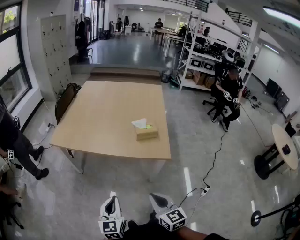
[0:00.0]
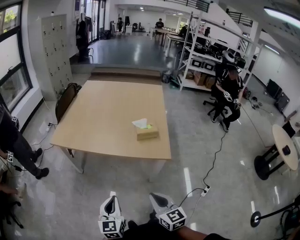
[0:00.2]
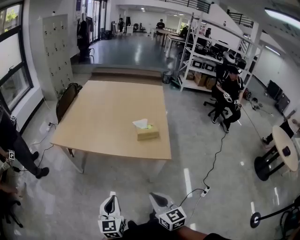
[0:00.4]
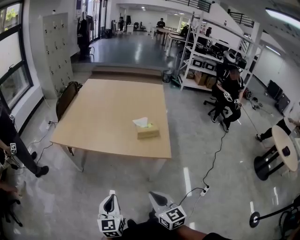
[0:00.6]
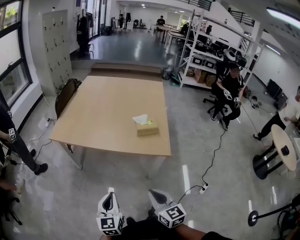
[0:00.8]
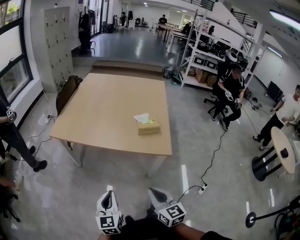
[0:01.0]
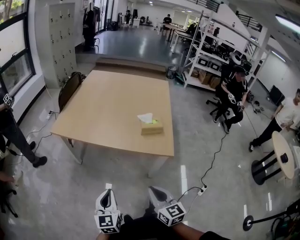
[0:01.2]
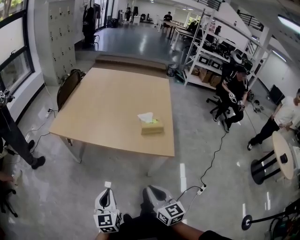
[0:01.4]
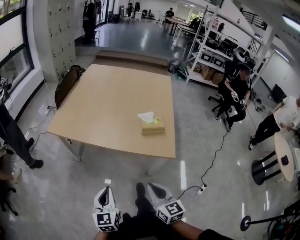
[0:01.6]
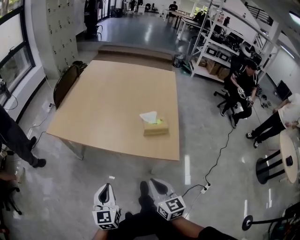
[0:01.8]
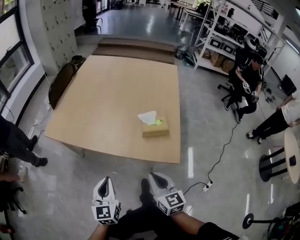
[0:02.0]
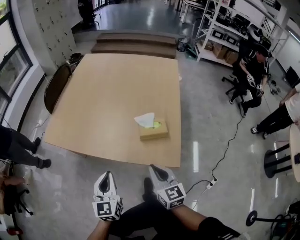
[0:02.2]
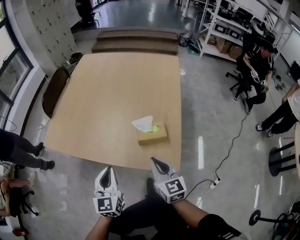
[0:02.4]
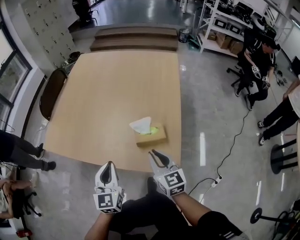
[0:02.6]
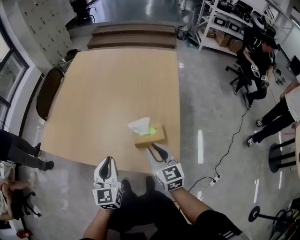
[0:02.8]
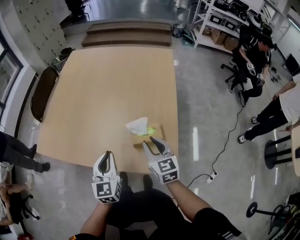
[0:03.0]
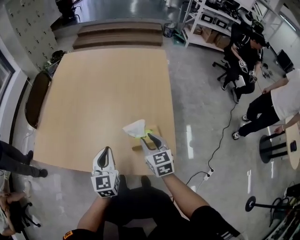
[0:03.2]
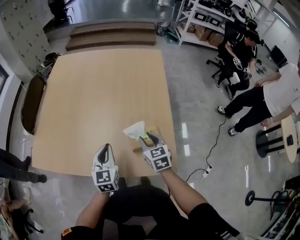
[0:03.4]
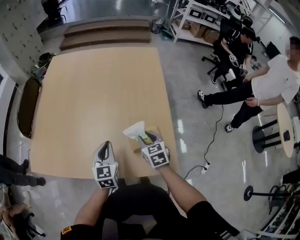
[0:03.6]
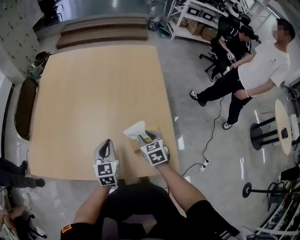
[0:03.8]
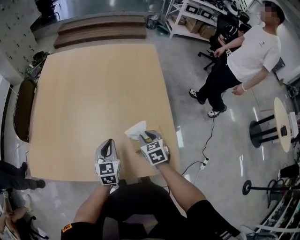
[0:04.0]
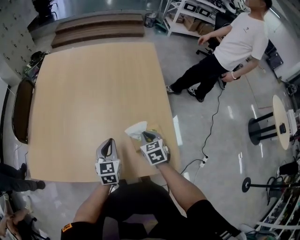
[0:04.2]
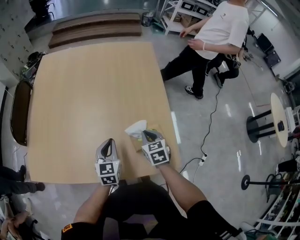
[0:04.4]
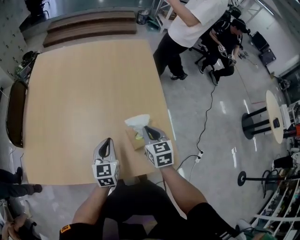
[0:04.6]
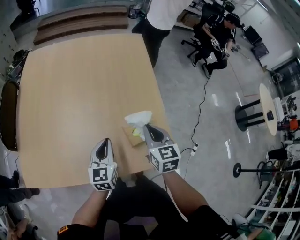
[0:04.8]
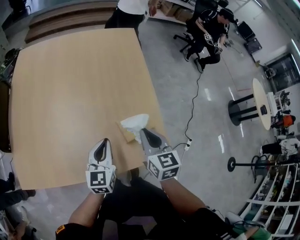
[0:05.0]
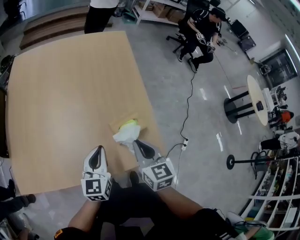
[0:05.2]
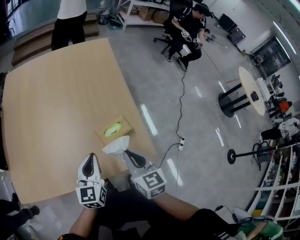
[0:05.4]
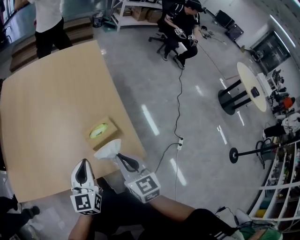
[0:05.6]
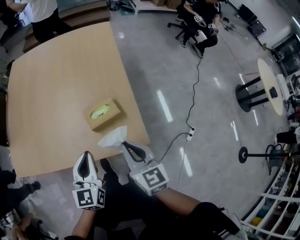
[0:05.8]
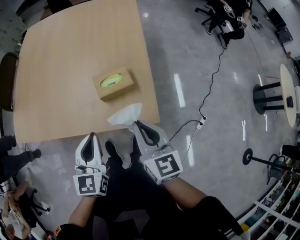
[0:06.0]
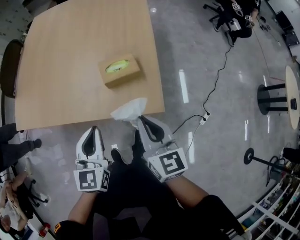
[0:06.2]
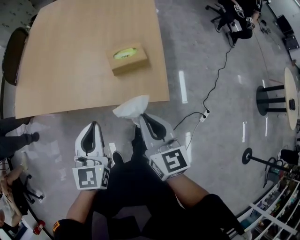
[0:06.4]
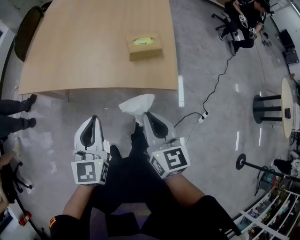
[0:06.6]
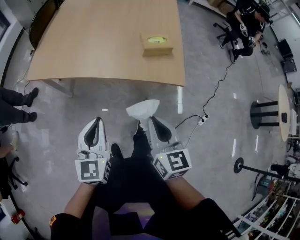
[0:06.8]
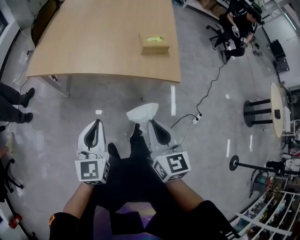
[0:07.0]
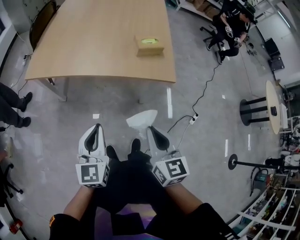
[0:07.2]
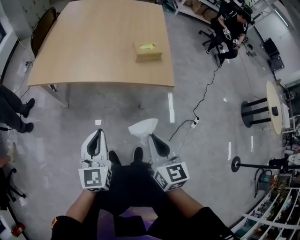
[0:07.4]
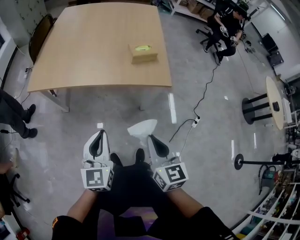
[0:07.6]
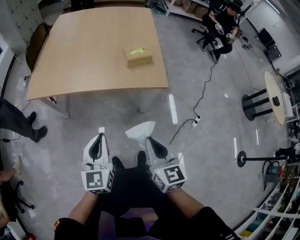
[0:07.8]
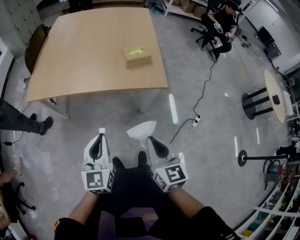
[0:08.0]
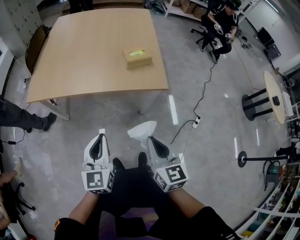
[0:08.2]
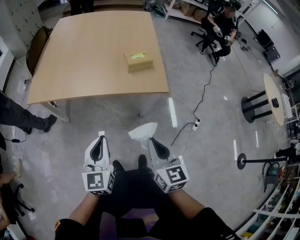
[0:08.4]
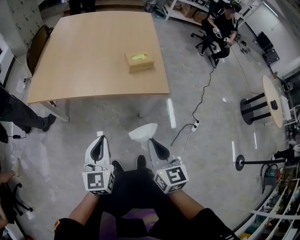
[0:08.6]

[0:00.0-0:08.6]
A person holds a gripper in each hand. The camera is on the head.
0:00.0 to 0:01.4: There are only small adjustments of the grippers.
0:01.4 to 0:02.8: Both grippers travel together forward and to the right, some 30 cm.
0:02.8 to 0:04.4: The right gripper moves downward and forward, roughly 15 cm, and changes its angle by about 30 degrees; the left gripper shifts approximately 20 cm forward and downward, and turns by approximately 20 degrees.
0:04.4 to 0:05.8: Both grippers move backward, upward and to the right, some 20 cm. The right gripper rotates some 30 degrees.
0:05.8 to 0:07.2: The right gripper travels backward by roughly 25 cm. Meanwhile the left gripper is displaced backward and to the left by approximately 30 cm.
0:07.2 to 0:08.6: The grippers move only a little.

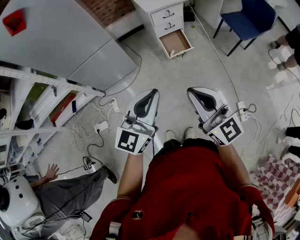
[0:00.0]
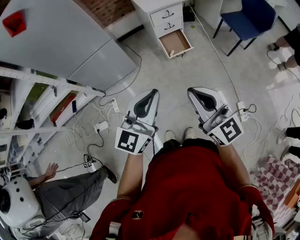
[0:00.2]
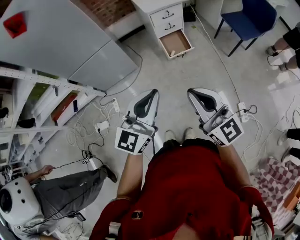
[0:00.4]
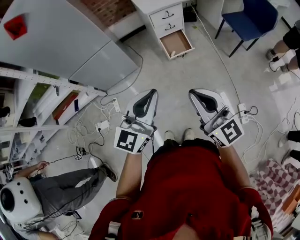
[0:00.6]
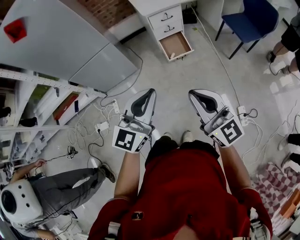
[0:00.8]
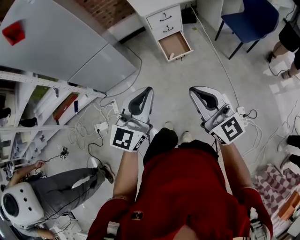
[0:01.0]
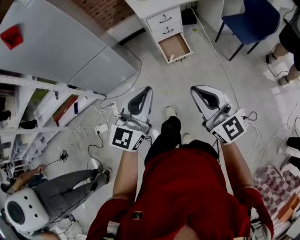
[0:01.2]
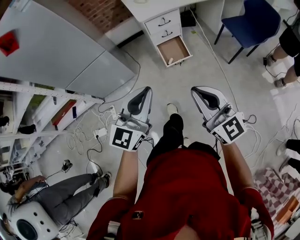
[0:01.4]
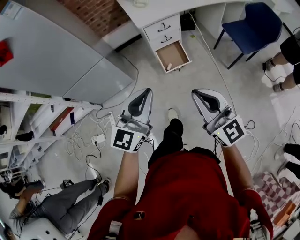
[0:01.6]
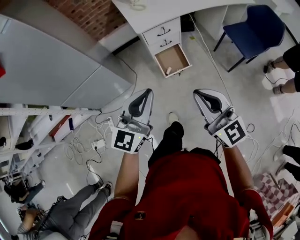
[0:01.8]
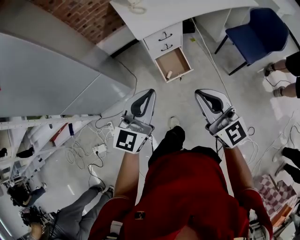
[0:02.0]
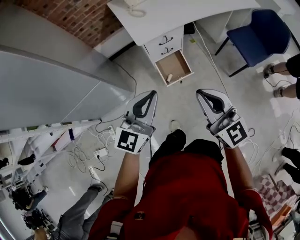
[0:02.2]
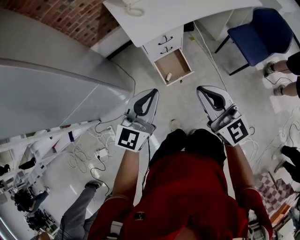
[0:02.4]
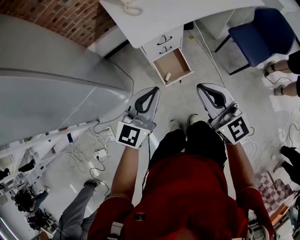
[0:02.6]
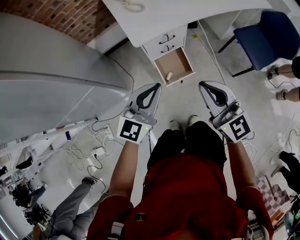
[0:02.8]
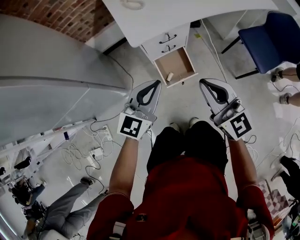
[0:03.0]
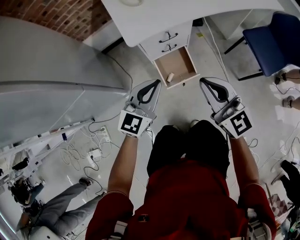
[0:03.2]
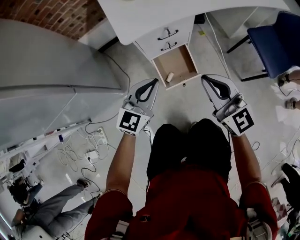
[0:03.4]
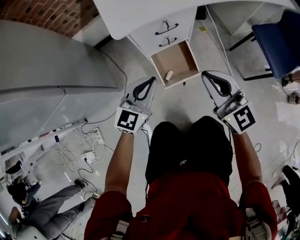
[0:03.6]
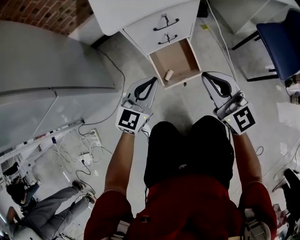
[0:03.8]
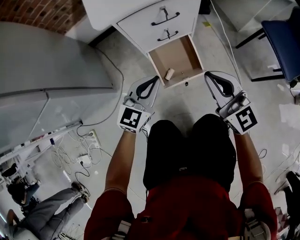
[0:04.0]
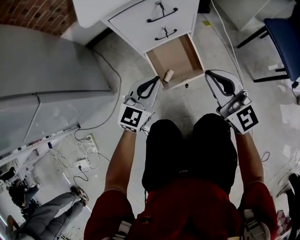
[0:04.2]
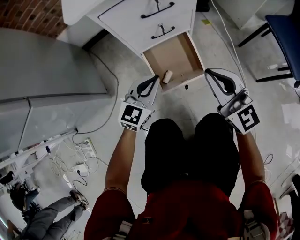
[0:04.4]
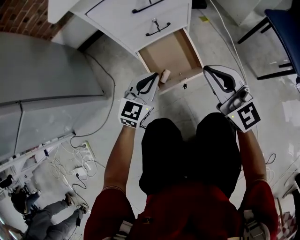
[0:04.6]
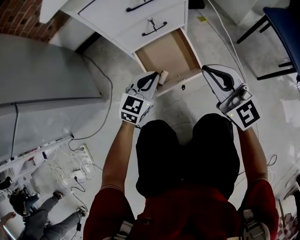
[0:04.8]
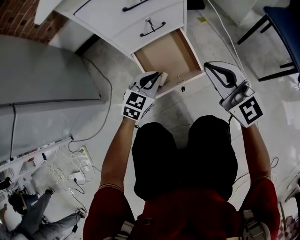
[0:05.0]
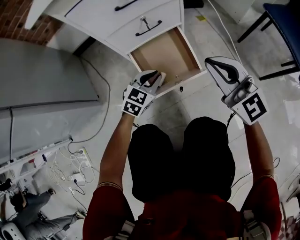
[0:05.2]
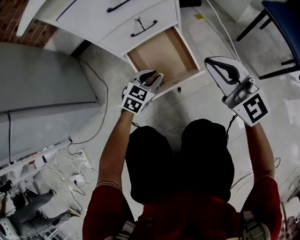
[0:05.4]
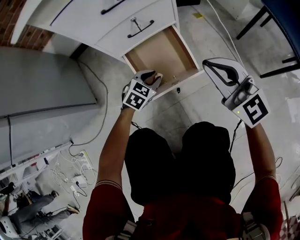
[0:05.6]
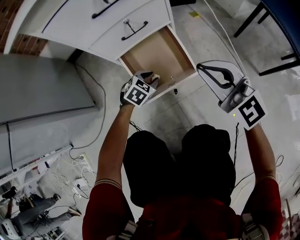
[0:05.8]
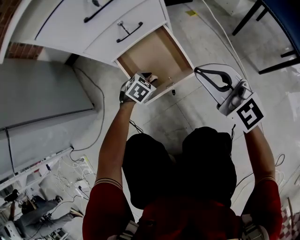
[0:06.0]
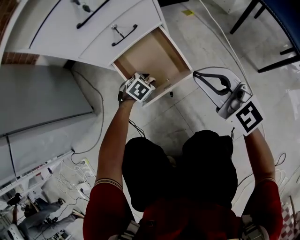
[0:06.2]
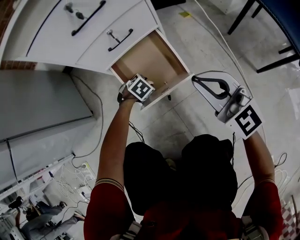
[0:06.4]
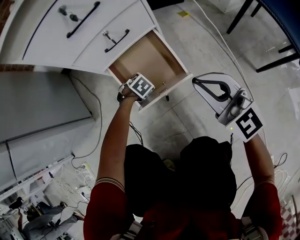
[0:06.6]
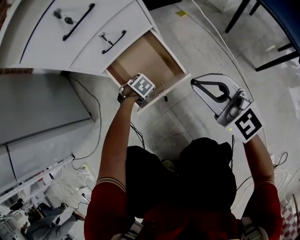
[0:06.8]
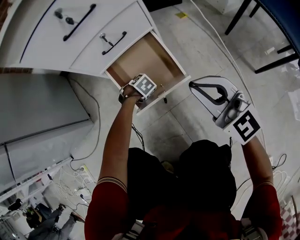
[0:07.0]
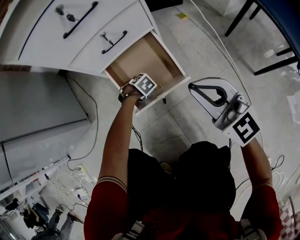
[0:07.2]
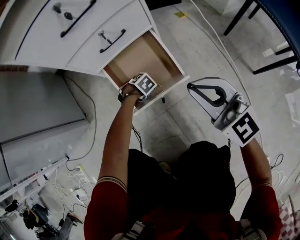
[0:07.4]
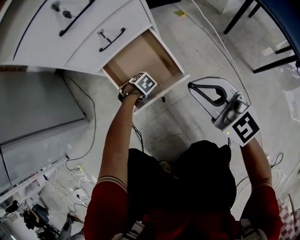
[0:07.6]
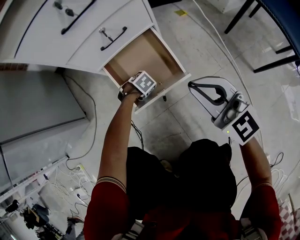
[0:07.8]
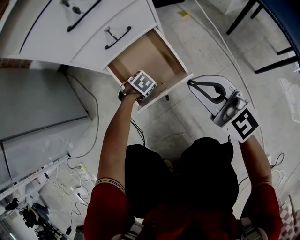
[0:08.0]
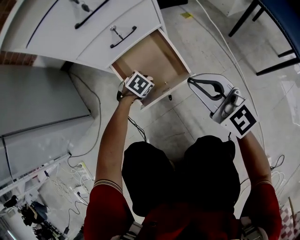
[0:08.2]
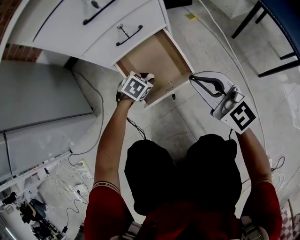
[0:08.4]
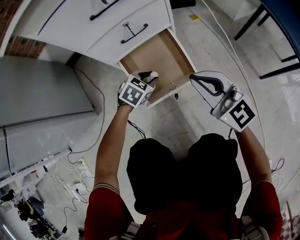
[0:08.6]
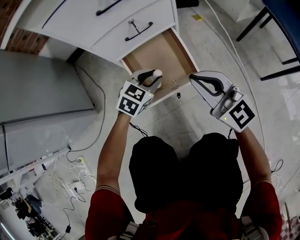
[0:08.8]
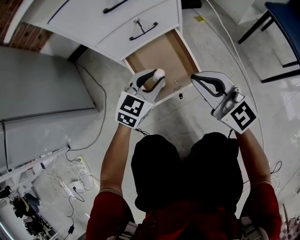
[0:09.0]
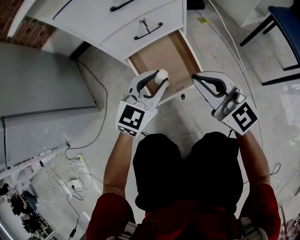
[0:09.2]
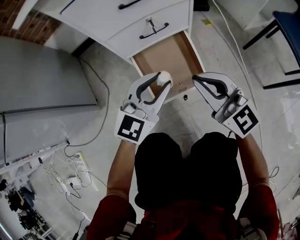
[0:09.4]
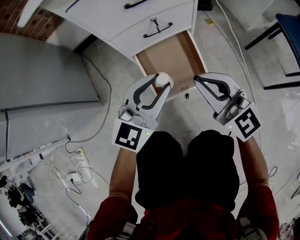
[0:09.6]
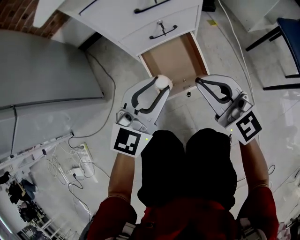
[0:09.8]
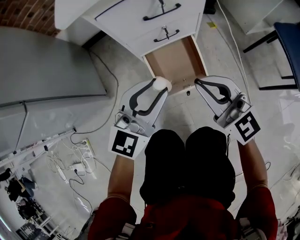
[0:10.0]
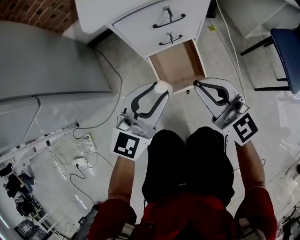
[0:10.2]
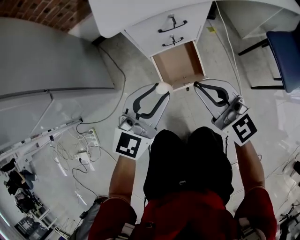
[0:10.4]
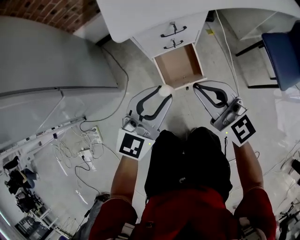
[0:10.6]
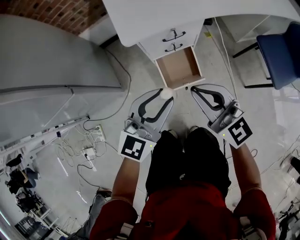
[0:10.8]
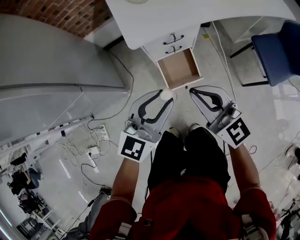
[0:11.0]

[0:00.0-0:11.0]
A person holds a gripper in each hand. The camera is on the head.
0:00.0 to 0:01.6: Both grippers move forward and to the right, about 20 cm.
0:01.6 to 0:03.2: The two grippers go some 40 cm forward and downward.
0:03.2 to 0:04.8: Both grippers move downward, some 40 cm.
0:04.8 to 0:06.2: The right gripper travels downward and to the right by about 10 cm. Meanwhile the left gripper travels downward by about 25 cm, angles its fingers downward, by about 40 degrees, and opens its fingers.
0:06.2 to 0:07.8: The left gripper shifts roughly 10 cm downward.
0:07.8 to 0:09.4: The left gripper goes approximately 35 cm upward, and points its fingers some 70 degrees further upward; the right gripper ends up some 10 cm from where it was.
0:09.4 to 0:11.0: Both grippers travel together upward, approximately 40 cm.

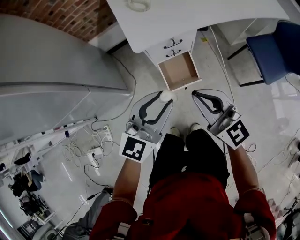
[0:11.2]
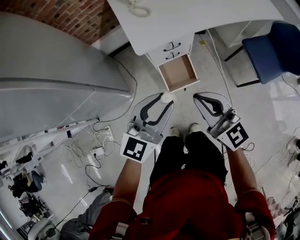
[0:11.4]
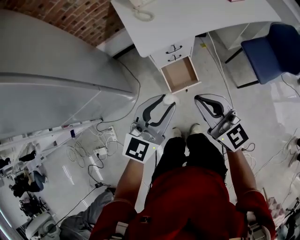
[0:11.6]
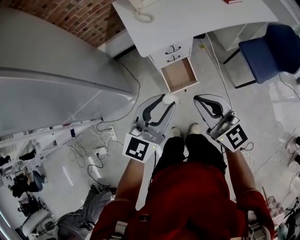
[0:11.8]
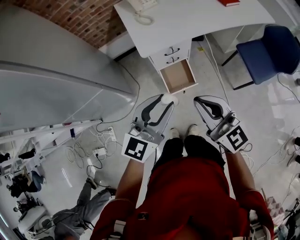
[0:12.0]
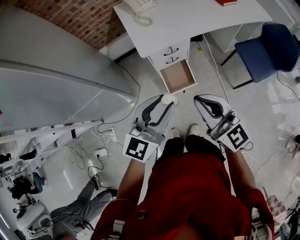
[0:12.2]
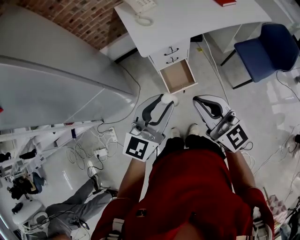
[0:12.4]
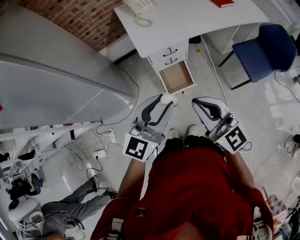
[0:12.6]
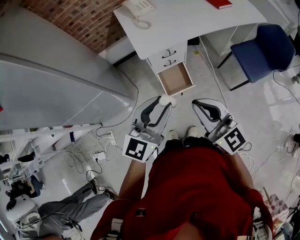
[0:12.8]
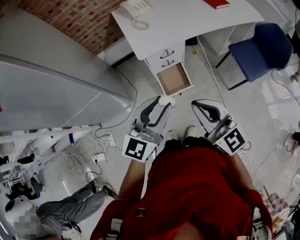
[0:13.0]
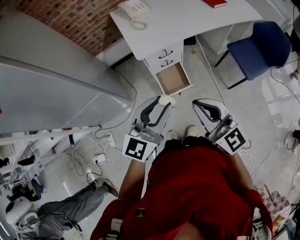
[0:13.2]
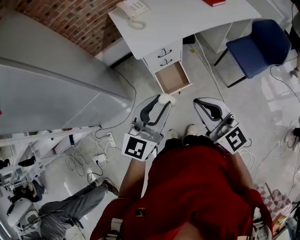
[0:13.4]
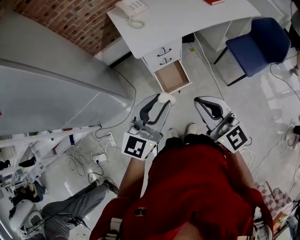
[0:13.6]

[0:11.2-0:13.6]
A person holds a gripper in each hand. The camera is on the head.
0:11.2 to 0:12.4: Both grippers move upward and backward, approximately 15 cm.
0:12.4 to 0:13.6: The grippers stay close to where they were, moving slightly.

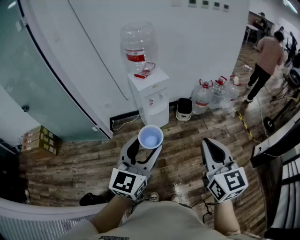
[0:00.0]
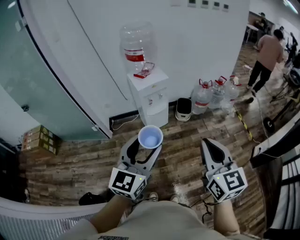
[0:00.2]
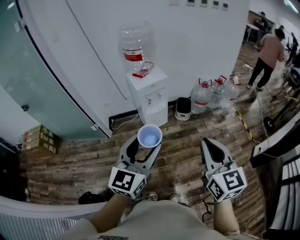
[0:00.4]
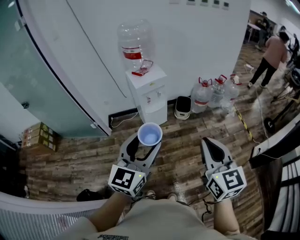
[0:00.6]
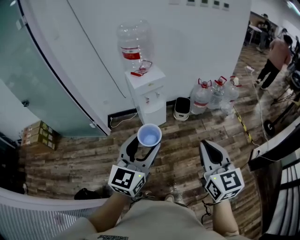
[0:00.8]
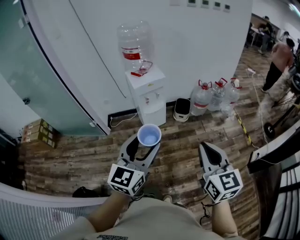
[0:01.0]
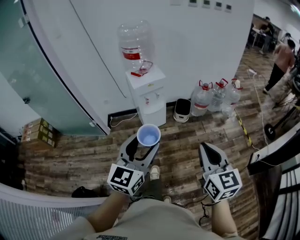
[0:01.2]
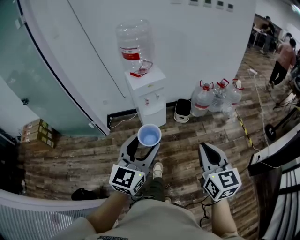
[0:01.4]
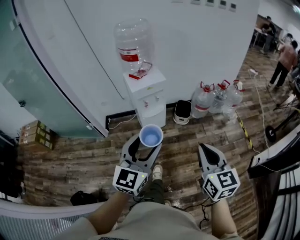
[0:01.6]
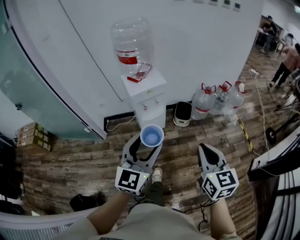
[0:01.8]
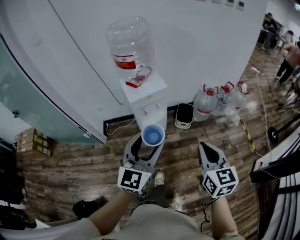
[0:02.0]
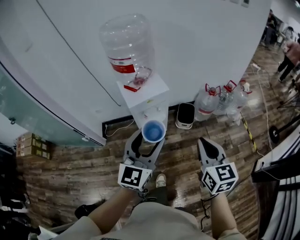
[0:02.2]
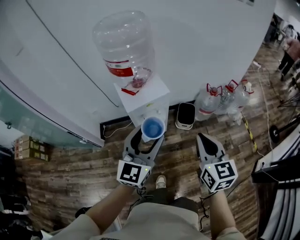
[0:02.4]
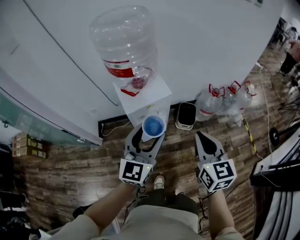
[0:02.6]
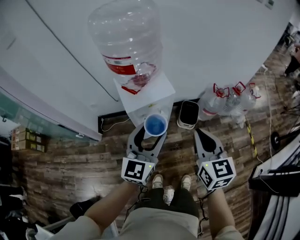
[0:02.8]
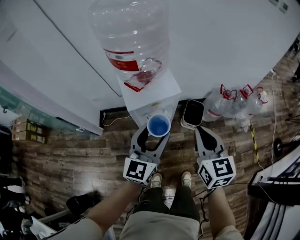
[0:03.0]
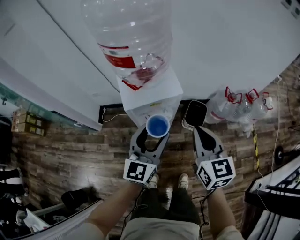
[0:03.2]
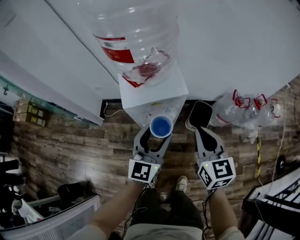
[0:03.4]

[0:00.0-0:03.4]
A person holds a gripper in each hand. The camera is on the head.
0:00.0 to 0:01.6: The right gripper shifts some 15 cm forward, downward and to the right. The left gripper travels forward and to the right by some 10 cm.
0:01.6 to 0:03.4: Both grippers are carried forward, roughly 40 cm. The left gripper shifts approximately 20 cm downward.
